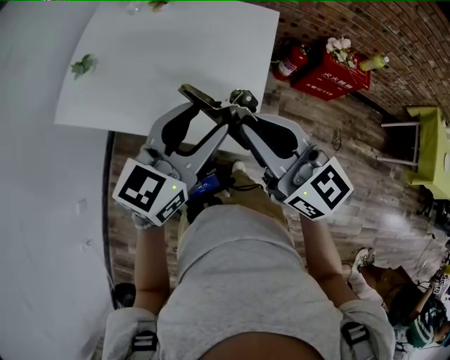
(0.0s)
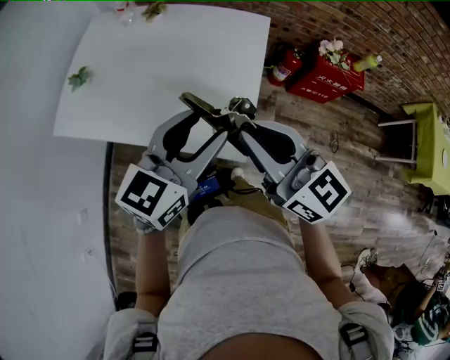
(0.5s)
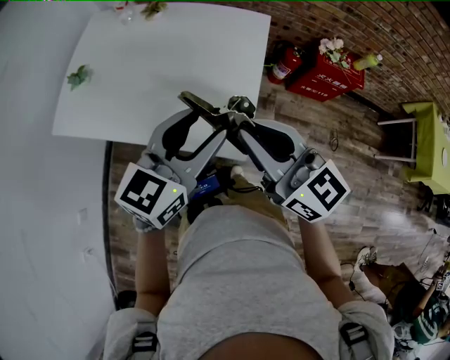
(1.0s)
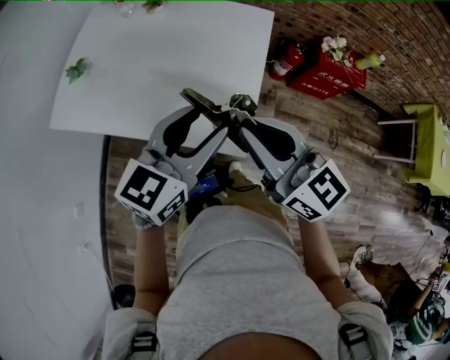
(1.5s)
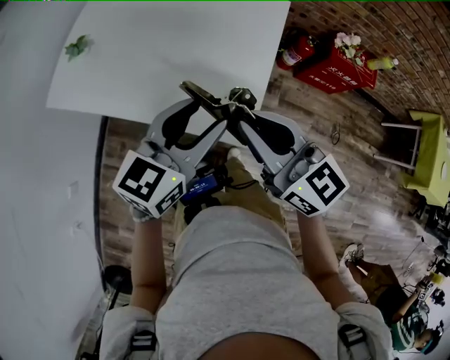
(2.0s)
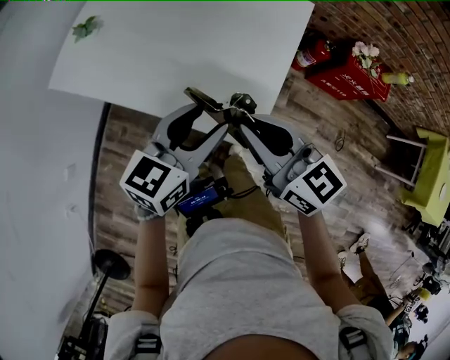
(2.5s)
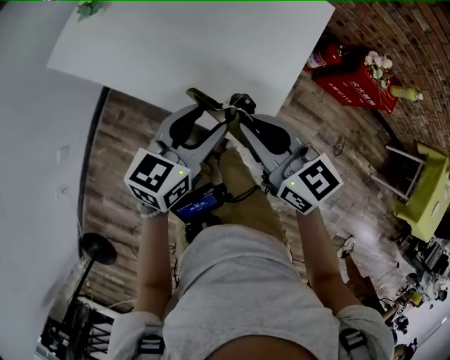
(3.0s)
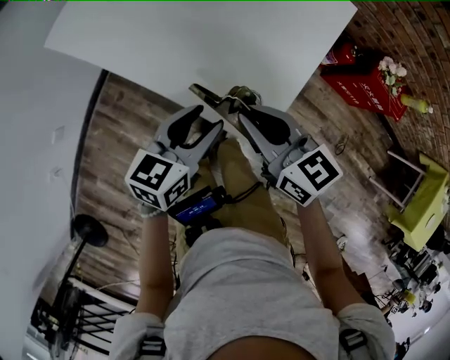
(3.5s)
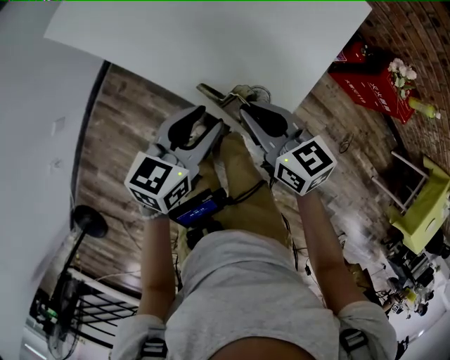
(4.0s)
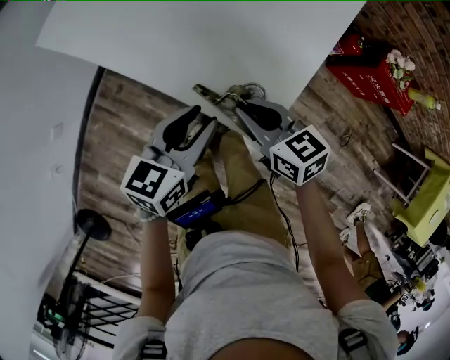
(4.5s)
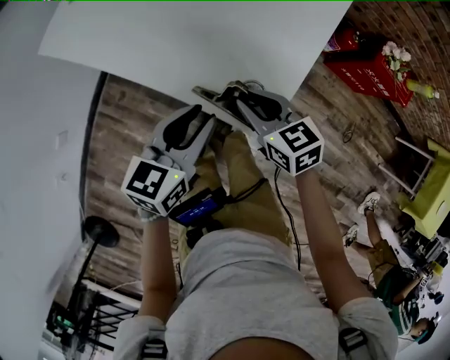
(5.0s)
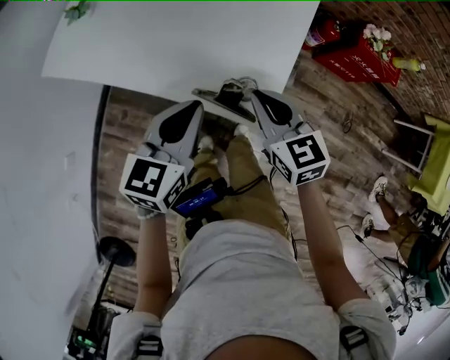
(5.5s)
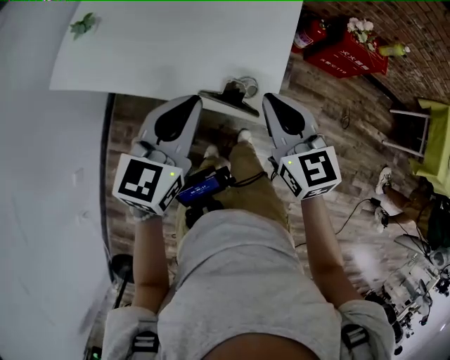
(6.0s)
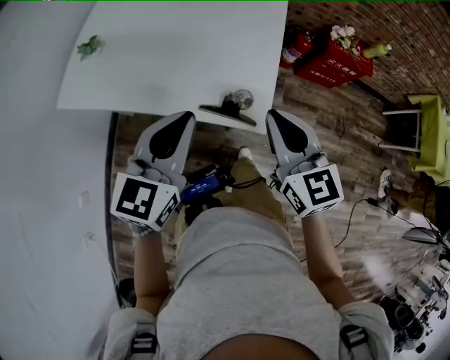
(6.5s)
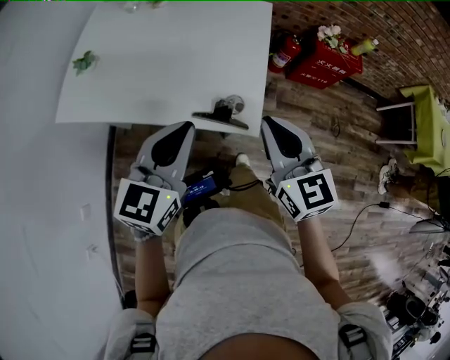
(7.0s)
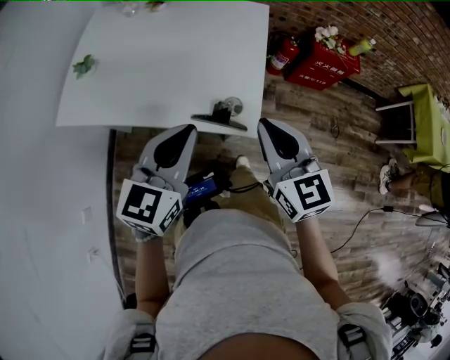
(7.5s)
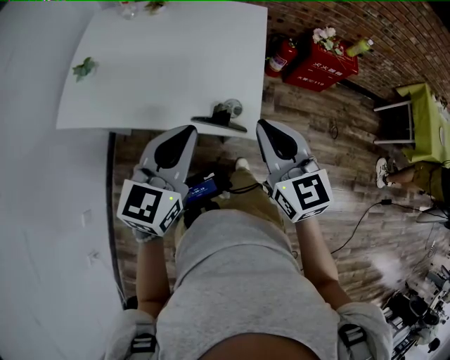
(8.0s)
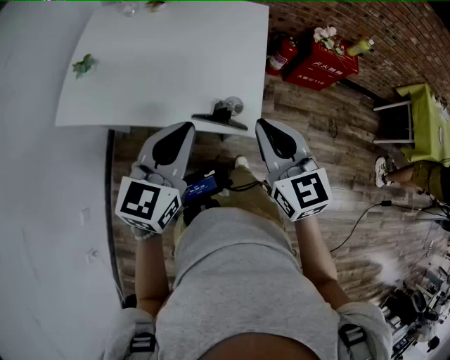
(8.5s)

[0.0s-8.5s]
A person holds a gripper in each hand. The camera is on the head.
0.0s to 2.0s: The grippers stay close to where they were, moving slightly.
2.0s to 4.0s: Both grippers move downward, about 15 cm. The right gripper turns by about 30 degrees, while the left gripper swivels some 30 degrees.
4.0s to 6.5s: The two grippers go some 15 cm upward. The right gripper rotates about 40 degrees; the left gripper rotates approximately 30 degrees, and closes.
6.5s to 8.5s: The grippers make only small movements.

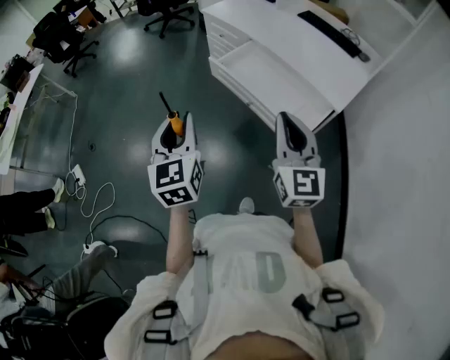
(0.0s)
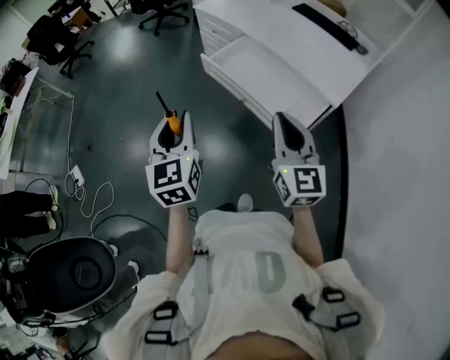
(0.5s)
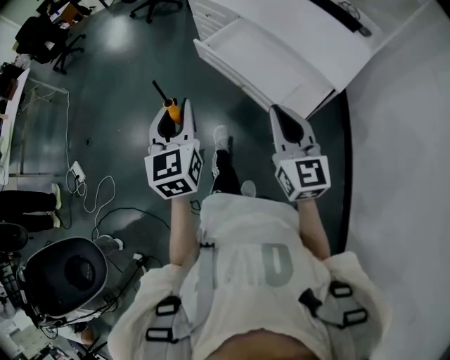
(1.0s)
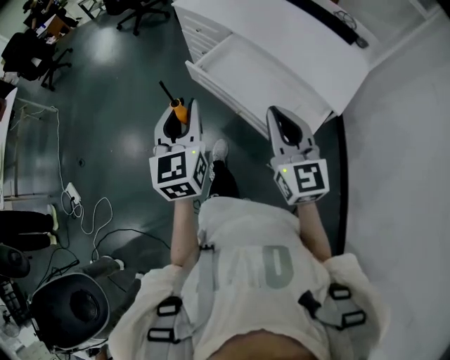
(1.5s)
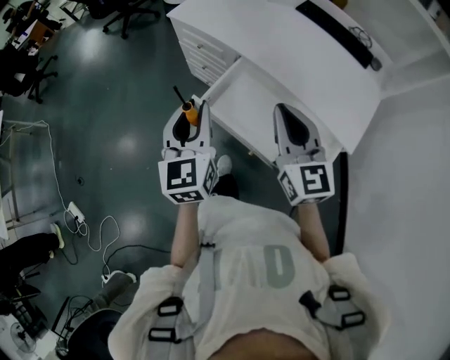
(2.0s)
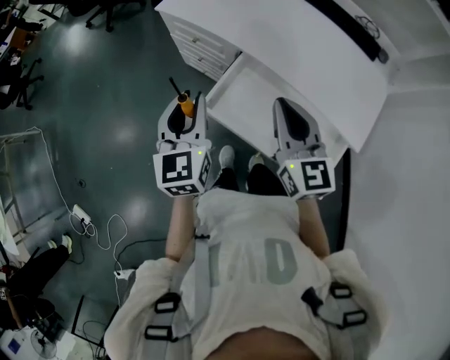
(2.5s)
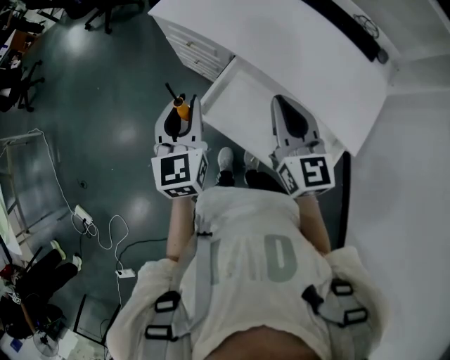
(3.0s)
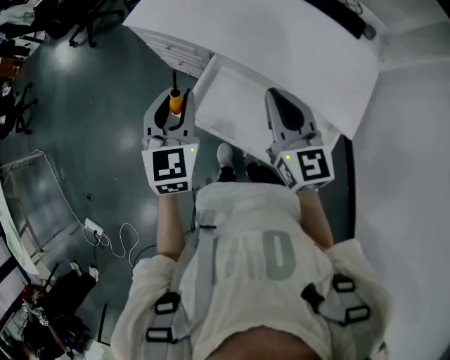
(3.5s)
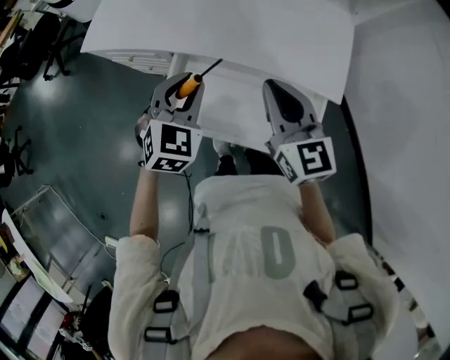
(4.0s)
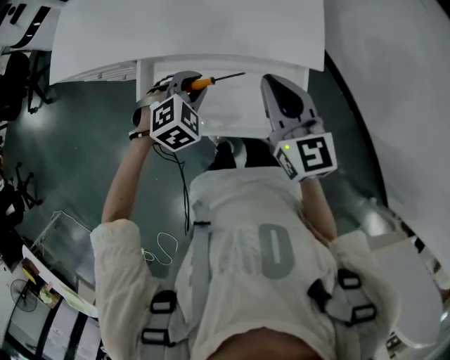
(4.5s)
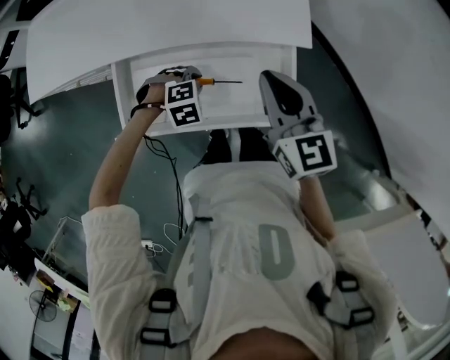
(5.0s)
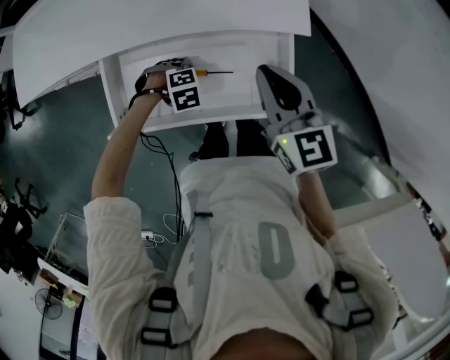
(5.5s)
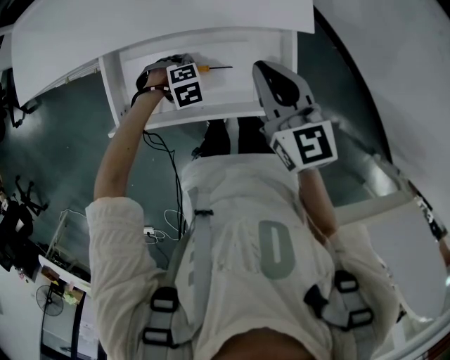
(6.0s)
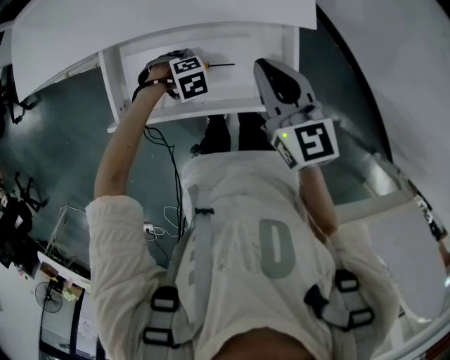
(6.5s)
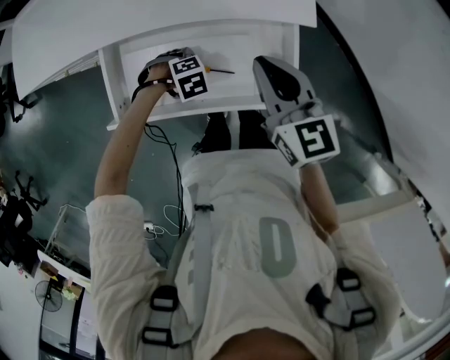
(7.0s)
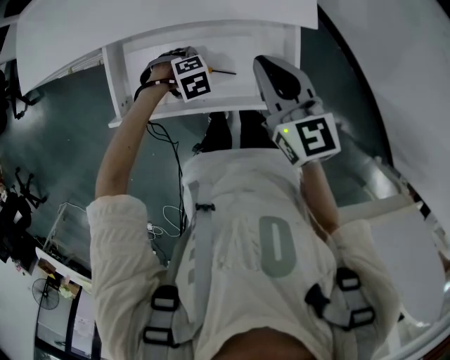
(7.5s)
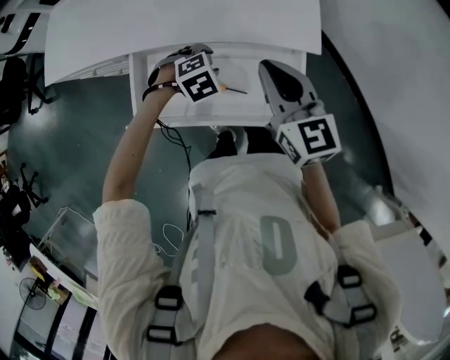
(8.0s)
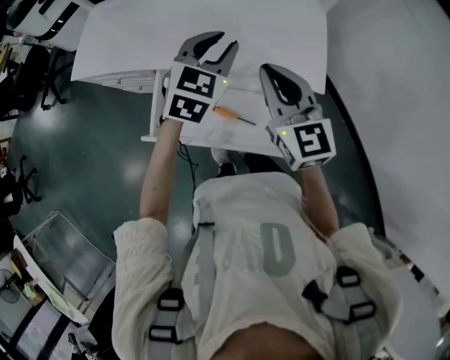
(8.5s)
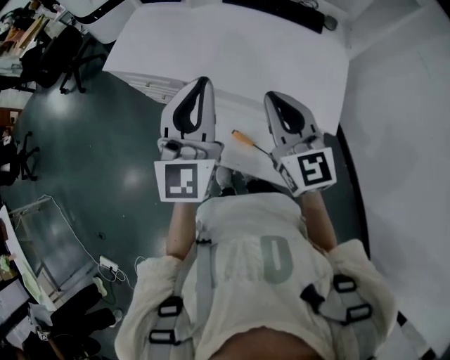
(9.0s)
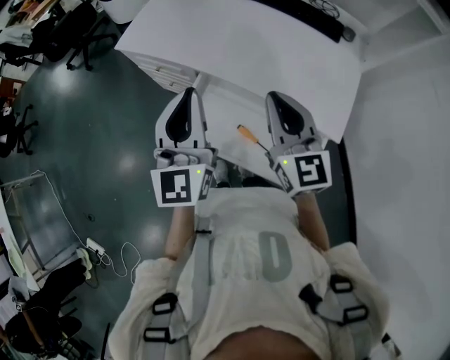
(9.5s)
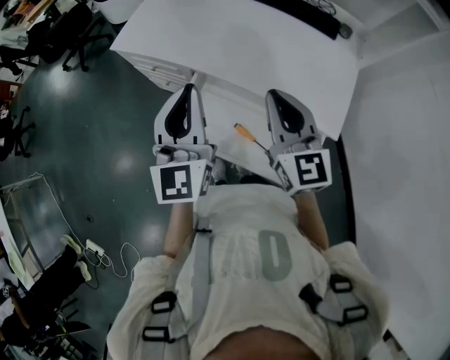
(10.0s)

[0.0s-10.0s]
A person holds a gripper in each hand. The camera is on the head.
0.0s to 2.0s: Both grippers travel together forward, approximately 35 cm.
2.0s to 4.0s: The left gripper changes place by approximately 20 cm, and changes its angle by approximately 60 degrees; the right gripper ends up roughly 15 cm from where it was, and turns by about 20 degrees.
4.0s to 6.0s: The left gripper is displaced downward by roughly 30 cm, and tips its fingers downward by approximately 50 degrees. Meanwhile the right gripper ends up about 15 cm from where it was.
6.0s to 8.0s: The right gripper ends up roughly 5 cm from where it was. Meanwhile the left gripper moves upward, approximately 10 cm, and opens up.
8.0s to 10.0s: The left gripper travels upward by about 35 cm, points its fingers approximately 80 degrees further upward, and closes its fingers; the right gripper changes place by roughly 15 cm, and changes its angle by roughly 20 degrees.

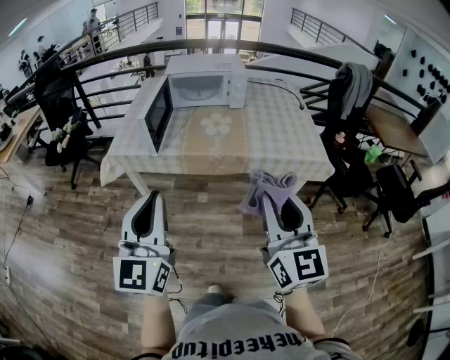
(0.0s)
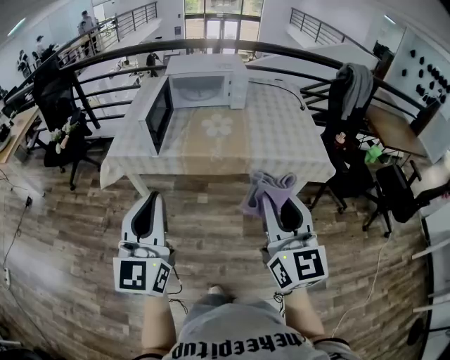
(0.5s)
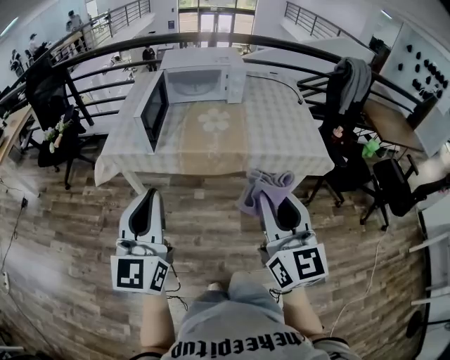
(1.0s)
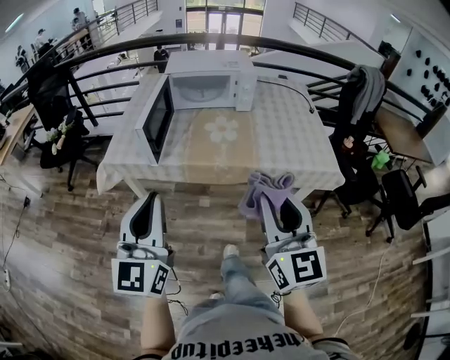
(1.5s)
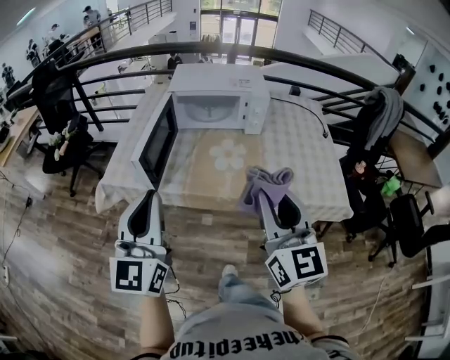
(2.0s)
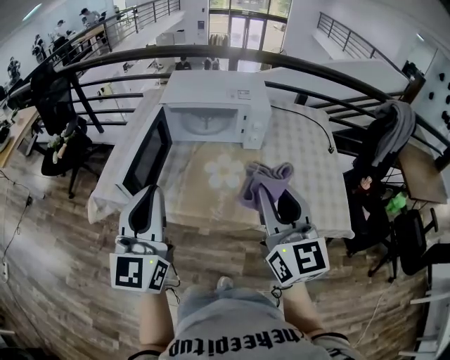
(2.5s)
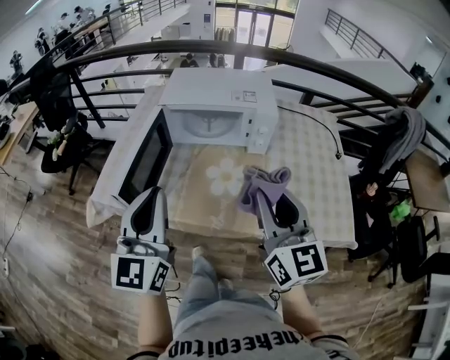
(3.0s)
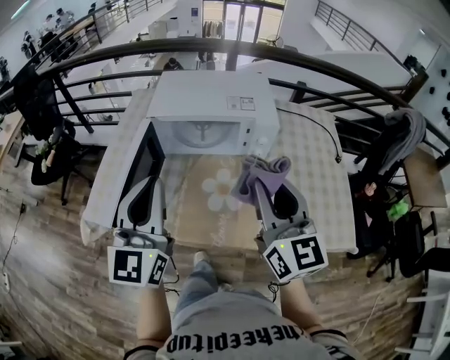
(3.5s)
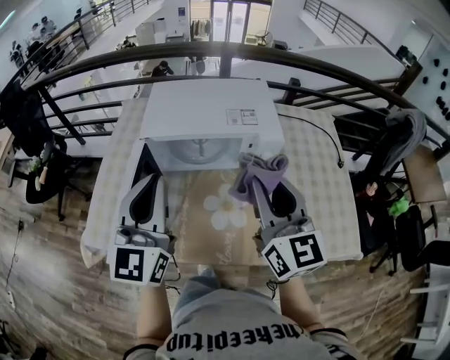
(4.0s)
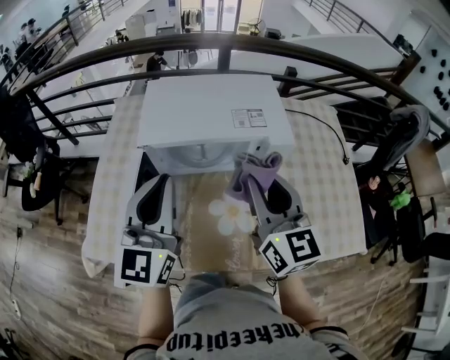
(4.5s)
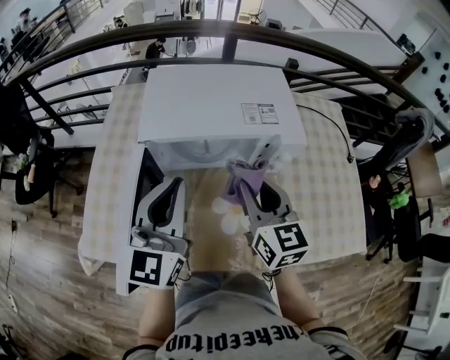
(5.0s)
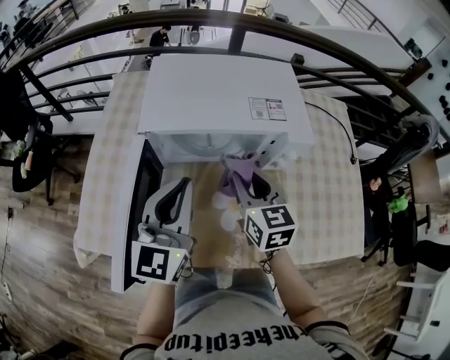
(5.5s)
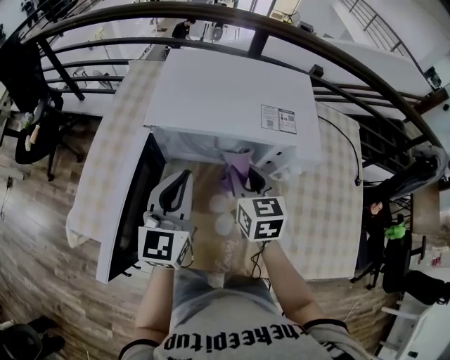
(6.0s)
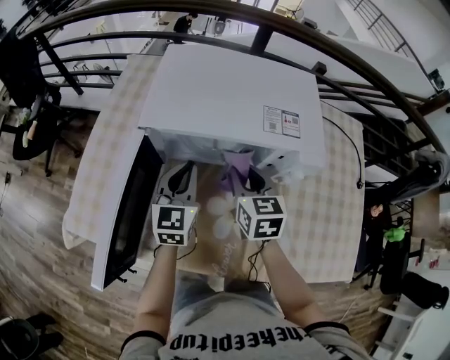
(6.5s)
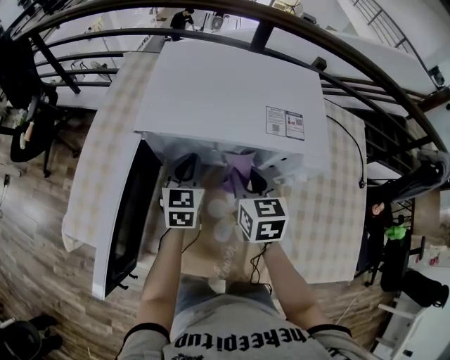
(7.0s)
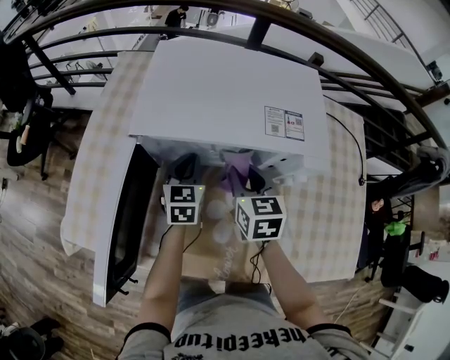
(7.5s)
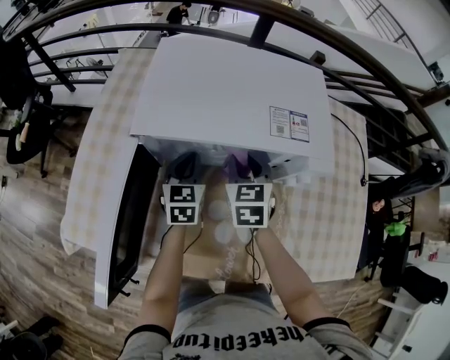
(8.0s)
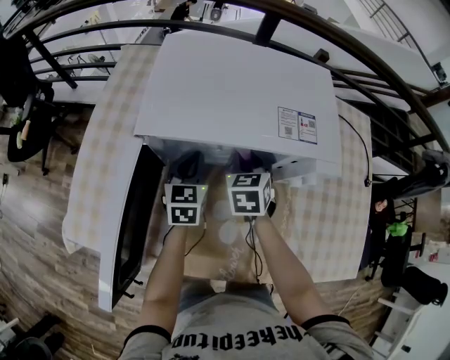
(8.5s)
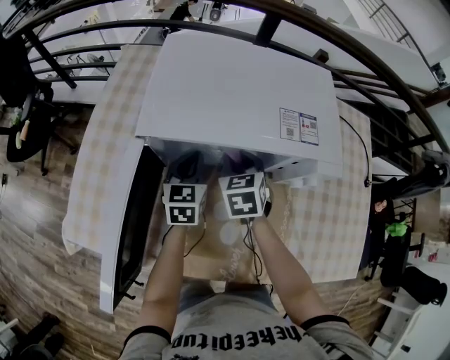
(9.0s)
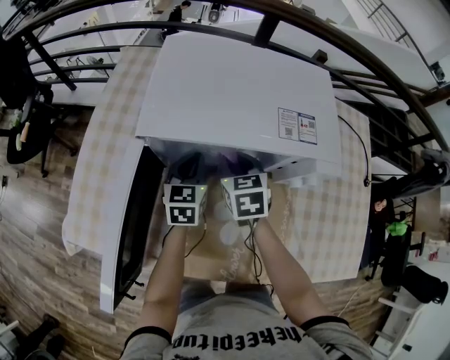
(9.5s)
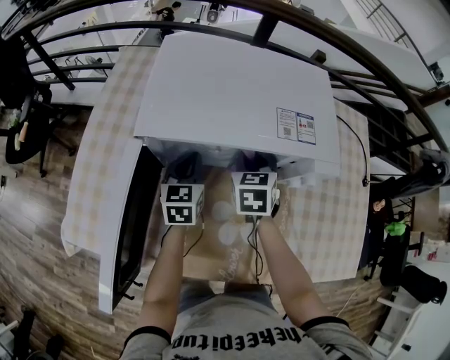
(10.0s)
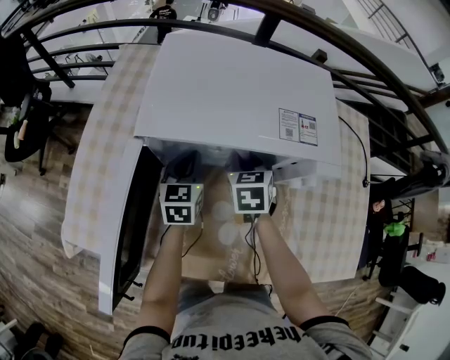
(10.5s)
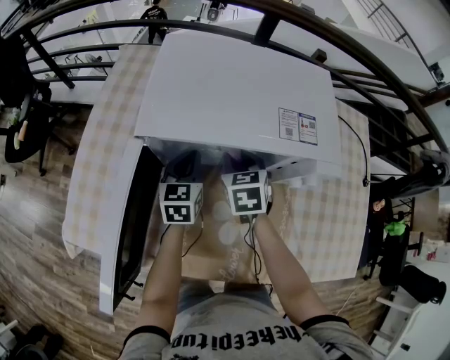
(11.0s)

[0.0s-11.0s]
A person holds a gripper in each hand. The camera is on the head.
0.0s to 2.0s: Both grippers move forward, approximately 25 cm.
2.0s to 3.5s: The two grippers go approximately 25 cm forward.
3.5s to 5.5s: The left gripper moves forward and downward, some 20 cm, while the right gripper shifts approximately 30 cm forward, downward and to the left, and turns by roughly 30 degrees.
5.5s to 7.5s: The right gripper is displaced downward and forward by approximately 10 cm. Meanwhile the left gripper is displaced downward and forward by roughly 25 cm, and turns by about 30 degrees.
7.5s to 9.0s: The right gripper ends up about 5 cm from where it was.
9.0s to 11.0s: The grippers stay close to where they were, moving slightly.
